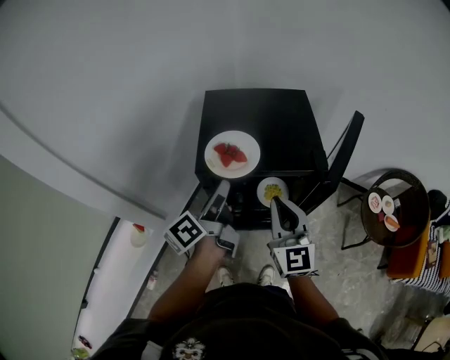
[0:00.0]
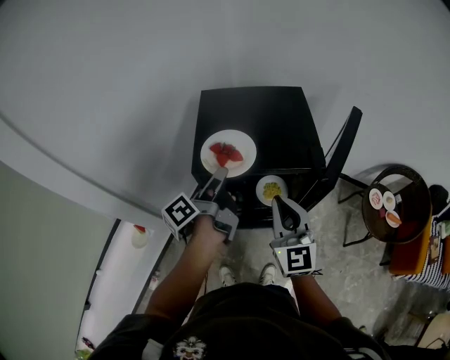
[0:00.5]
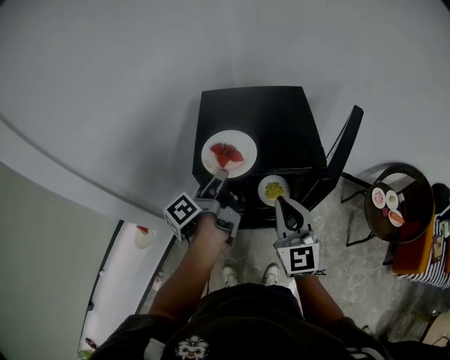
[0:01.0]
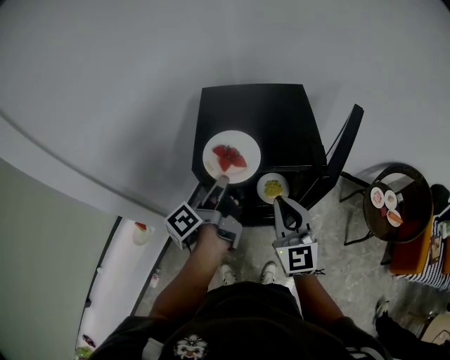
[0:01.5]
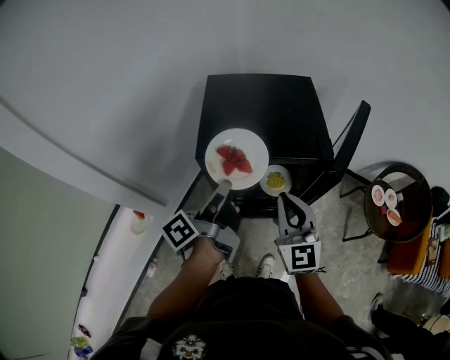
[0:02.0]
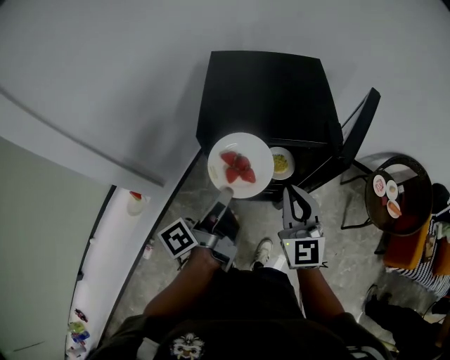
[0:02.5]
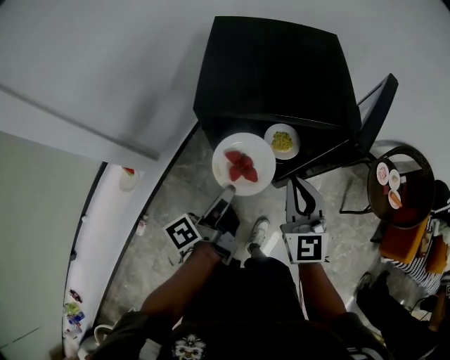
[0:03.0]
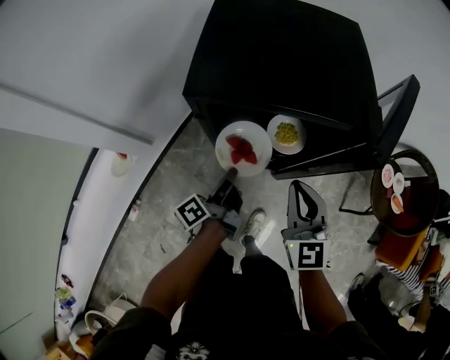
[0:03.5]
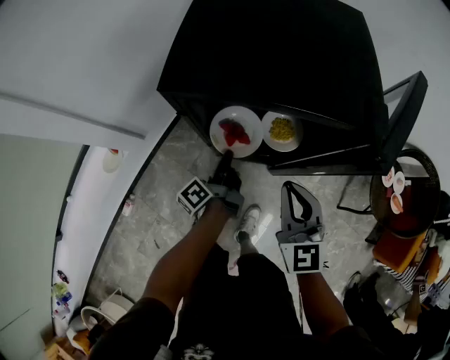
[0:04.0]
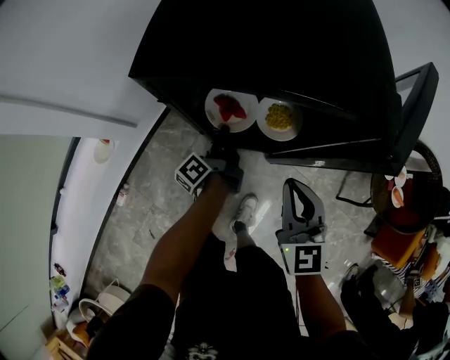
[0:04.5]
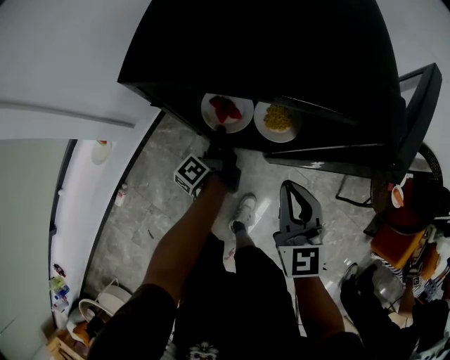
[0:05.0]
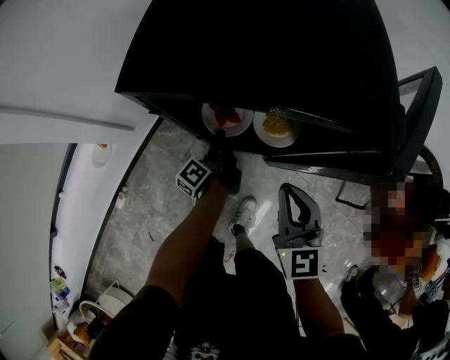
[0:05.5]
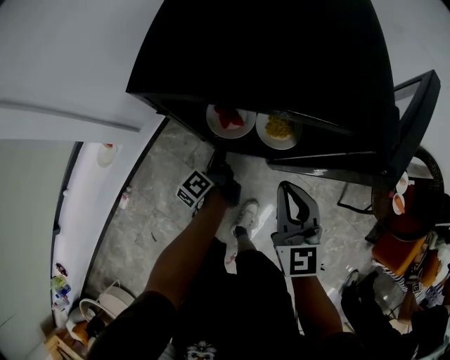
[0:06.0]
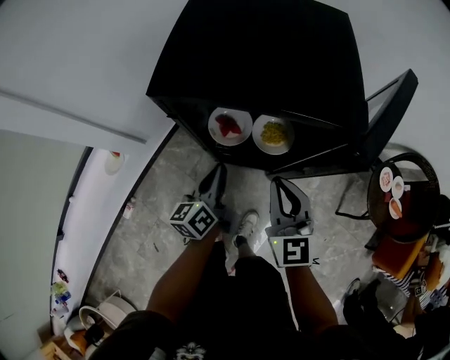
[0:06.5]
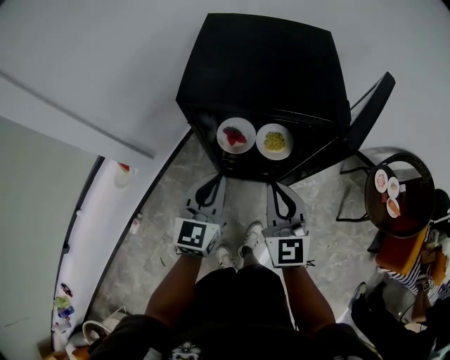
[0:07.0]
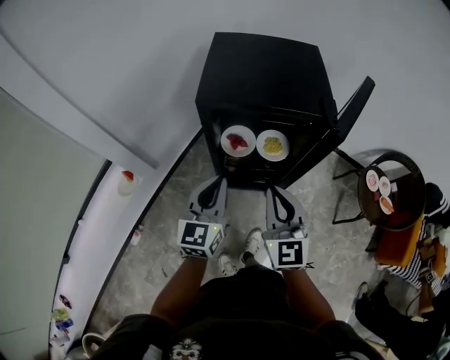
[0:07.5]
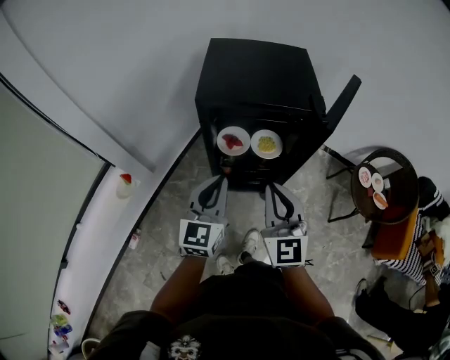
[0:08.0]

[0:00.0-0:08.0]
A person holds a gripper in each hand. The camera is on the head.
0.0 to 2.0 s: The left gripper closes up.
2.0 to 4.0 s: The left gripper shifts approximately 30 cm downward; the right gripper shifts approximately 15 cm downward.
4.0 to 6.0 s: The left gripper is displaced downward by about 5 cm, and opens up.
6.0 to 8.0 s: The right gripper shifts roughly 25 cm upward, backward and to the left, while the left gripper heads upward and backward, covering roughly 40 cm, rotates around the line of its fingers by approximately 80 degrees, clockwise from behind, and closes.

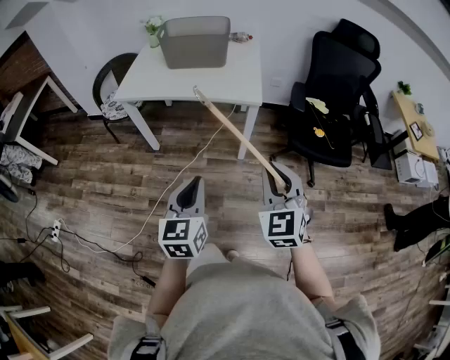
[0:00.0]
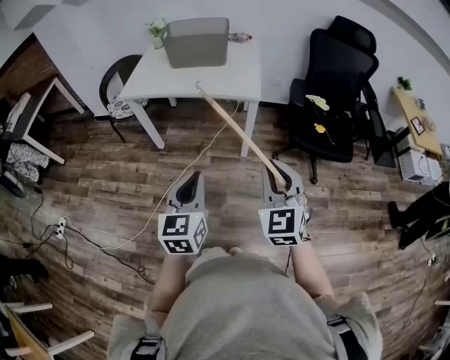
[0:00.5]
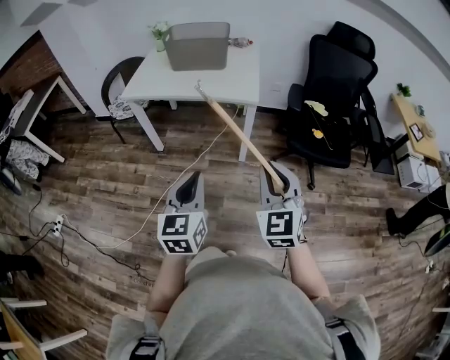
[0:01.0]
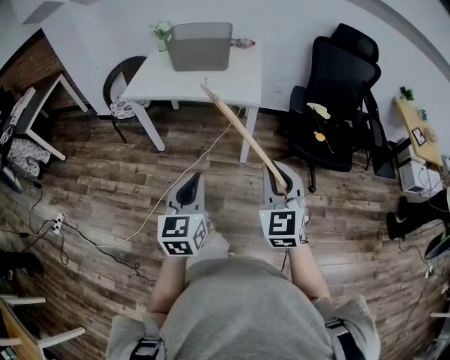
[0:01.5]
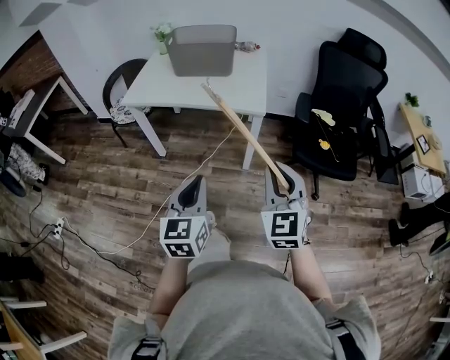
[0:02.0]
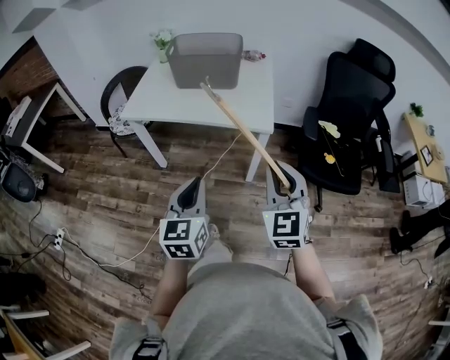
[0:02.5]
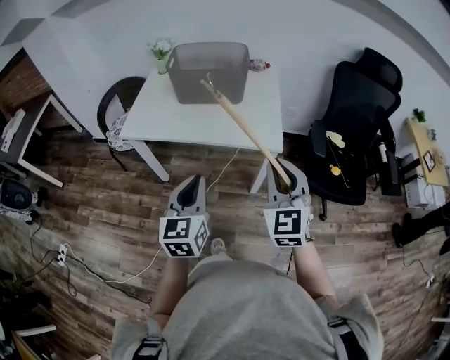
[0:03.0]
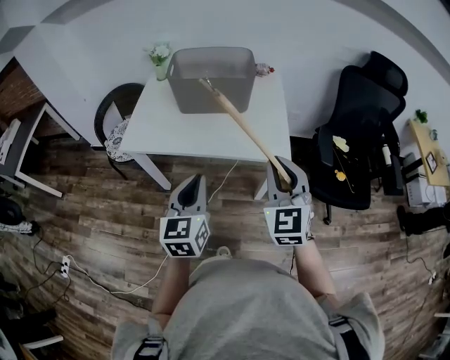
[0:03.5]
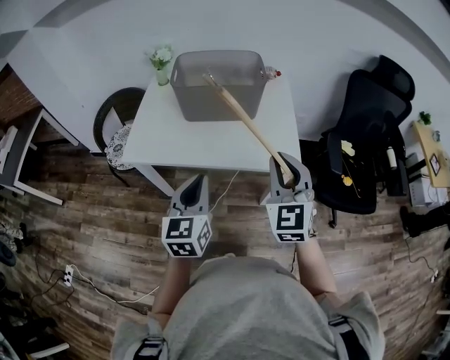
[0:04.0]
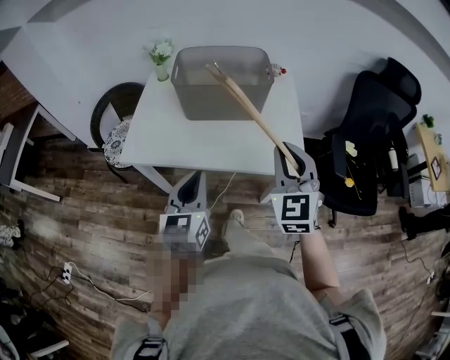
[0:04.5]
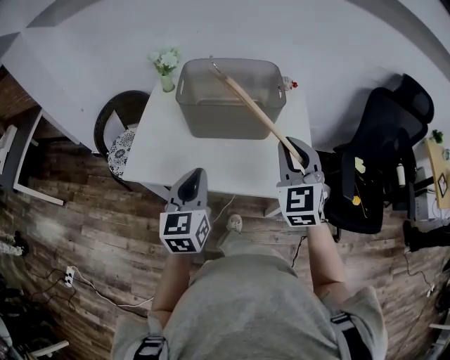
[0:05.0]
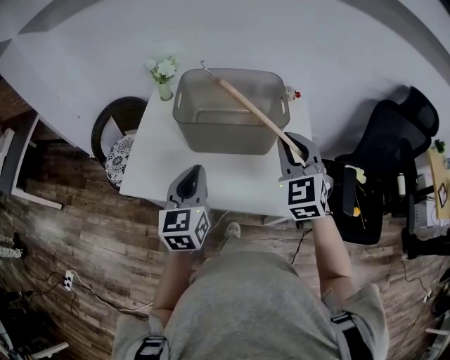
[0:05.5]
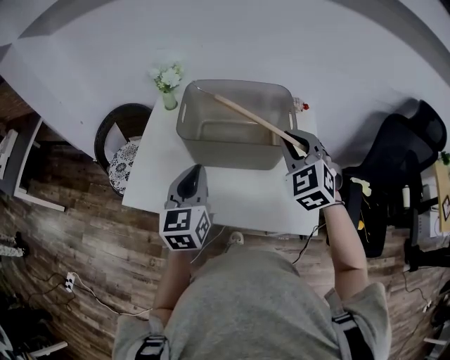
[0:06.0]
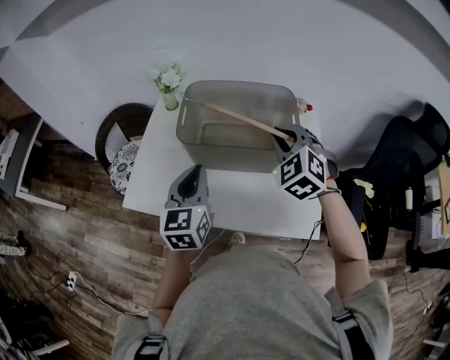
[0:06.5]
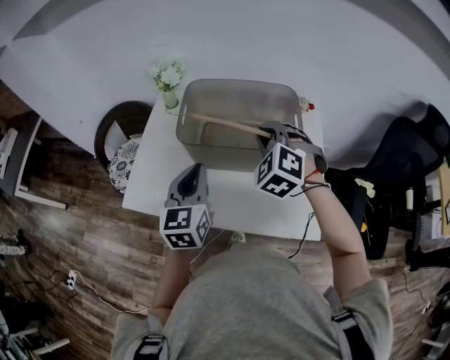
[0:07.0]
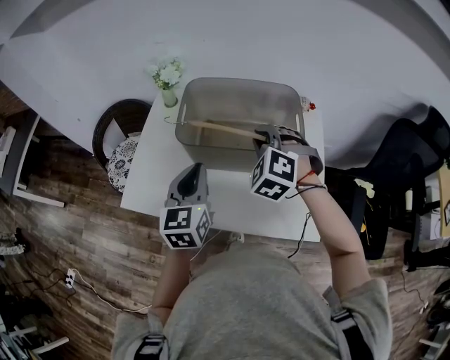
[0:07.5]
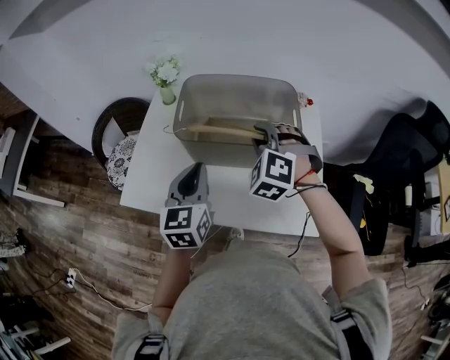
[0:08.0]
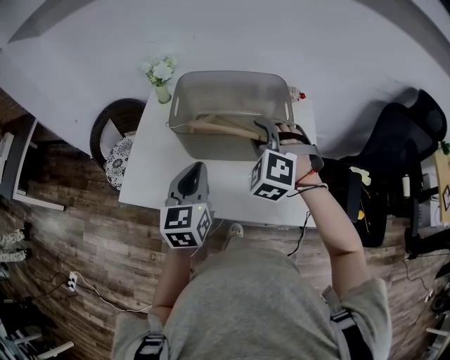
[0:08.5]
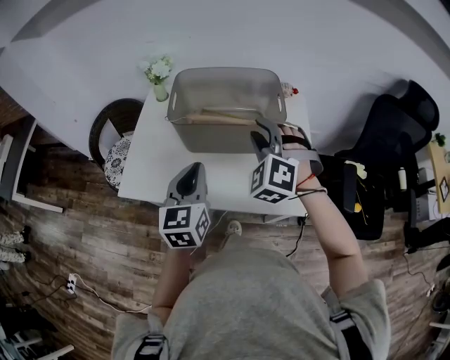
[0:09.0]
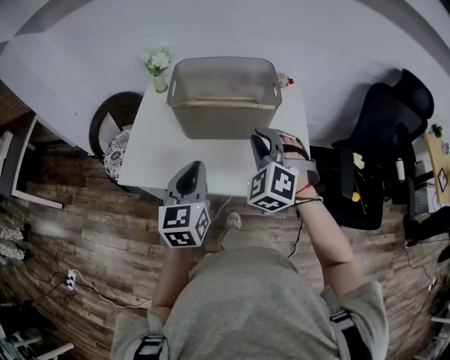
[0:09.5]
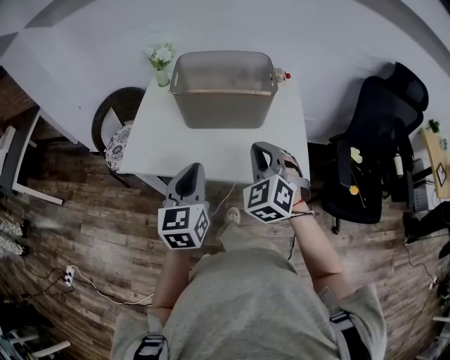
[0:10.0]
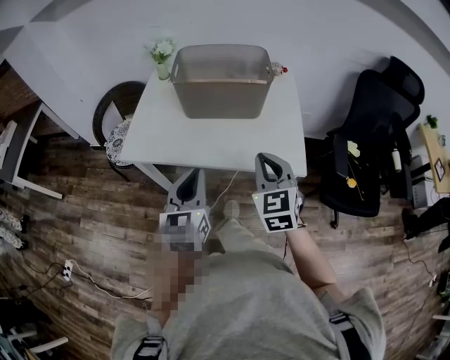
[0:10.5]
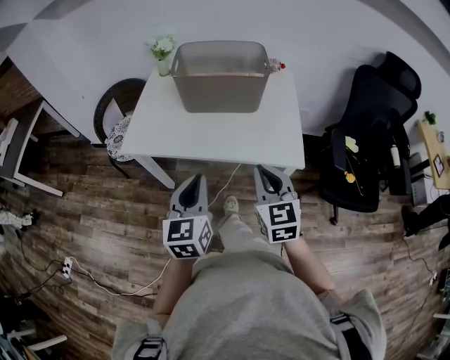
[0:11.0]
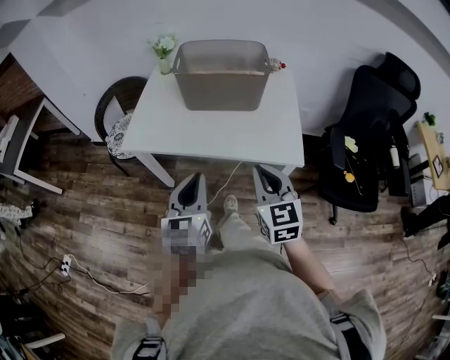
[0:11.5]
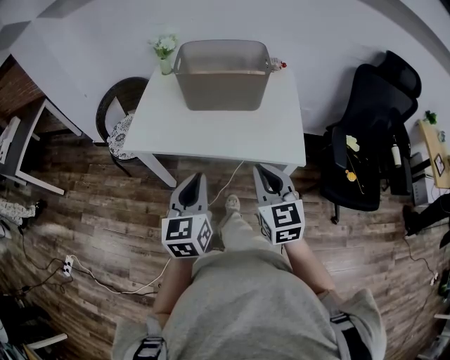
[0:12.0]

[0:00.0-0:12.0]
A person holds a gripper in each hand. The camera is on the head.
0.0 to 2.0 s: The right gripper moves roughly 5 cm backward and comes back.
2.0 to 4.0 s: Both grippers travel together forward and to the left, approximately 40 cm.
4.0 to 6.0 s: Both grippers move forward, some 30 cm. The right gripper changes its angle by about 30 degrees.
6.0 to 8.0 s: The right gripper heads to the left and downward, covering some 10 cm, and rotates approximately 30 degrees.
8.0 to 10.0 s: The two grippers go some 20 cm backward. The right gripper turns by some 30 degrees.
10.0 to 12.0 s: Both grippers move backward, roughly 15 cm. The right gripper changes its angle by approximately 40 degrees.

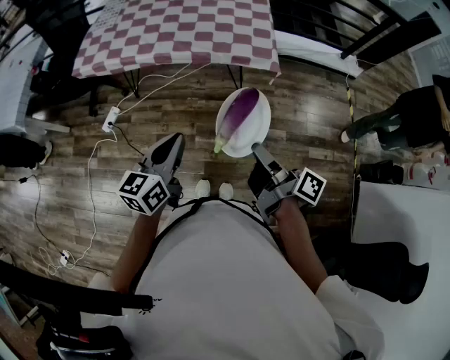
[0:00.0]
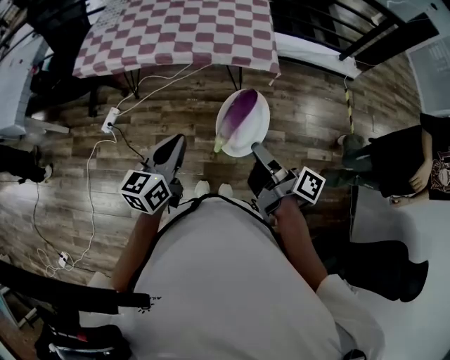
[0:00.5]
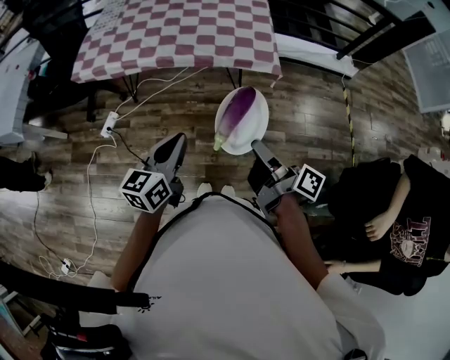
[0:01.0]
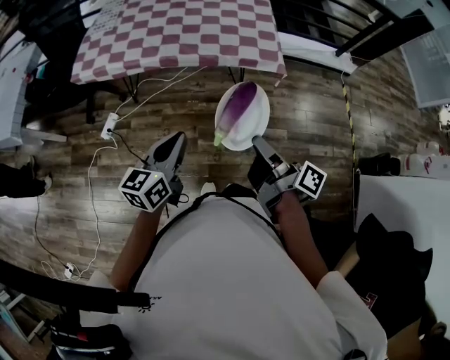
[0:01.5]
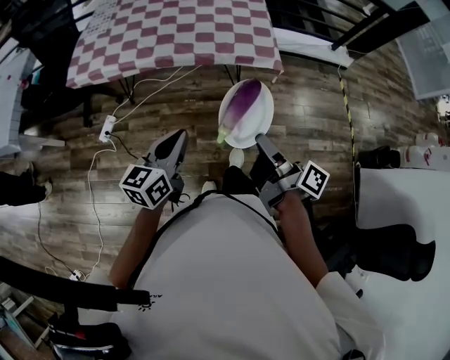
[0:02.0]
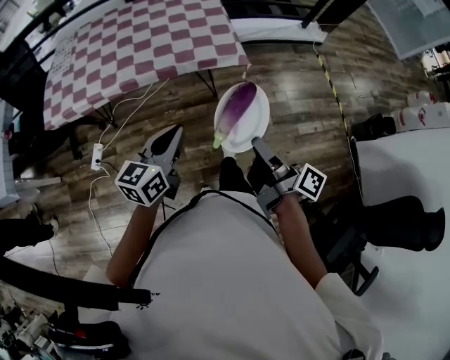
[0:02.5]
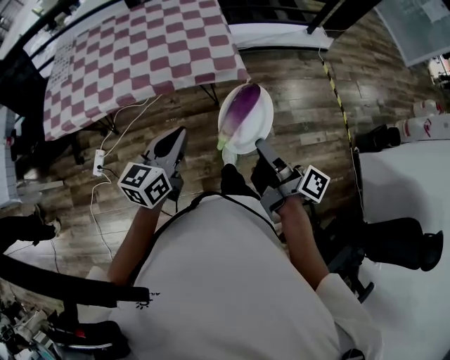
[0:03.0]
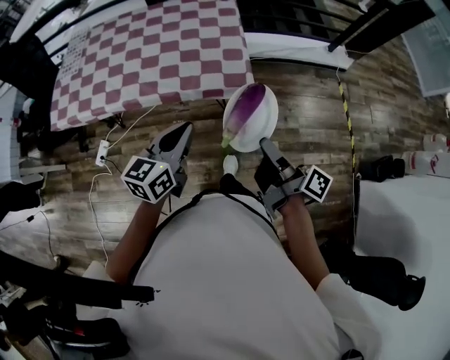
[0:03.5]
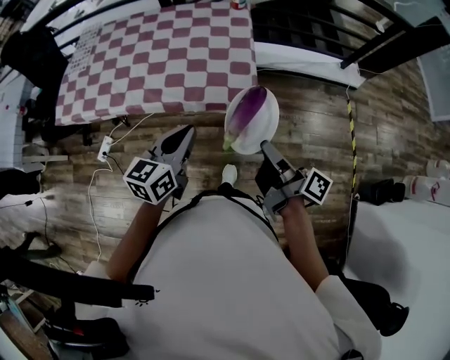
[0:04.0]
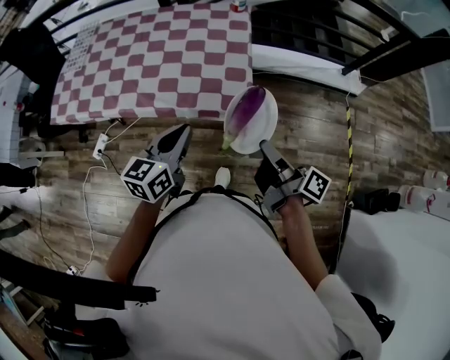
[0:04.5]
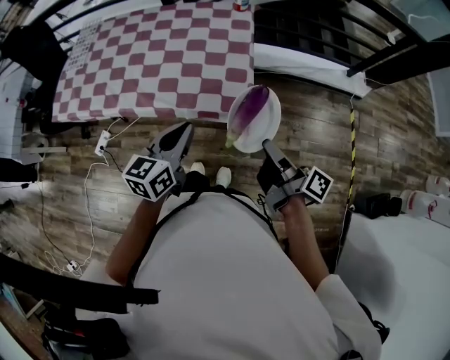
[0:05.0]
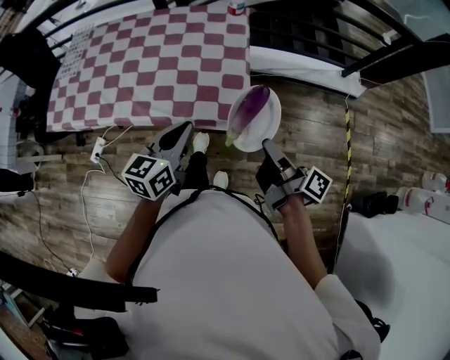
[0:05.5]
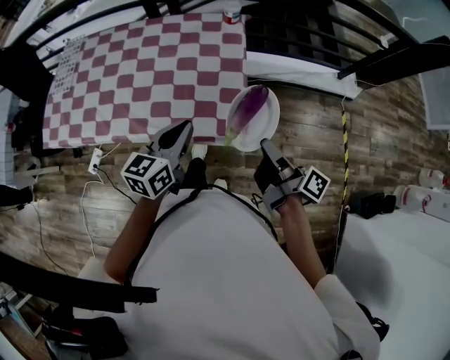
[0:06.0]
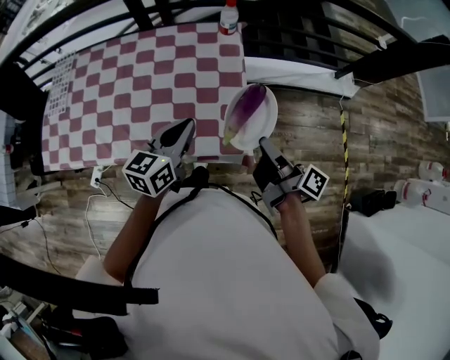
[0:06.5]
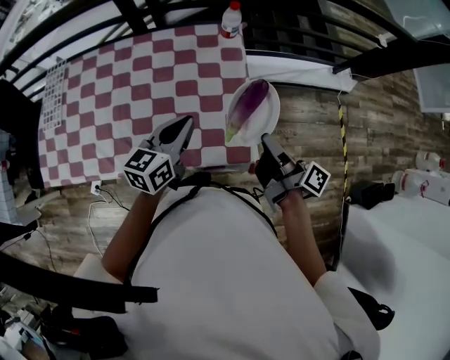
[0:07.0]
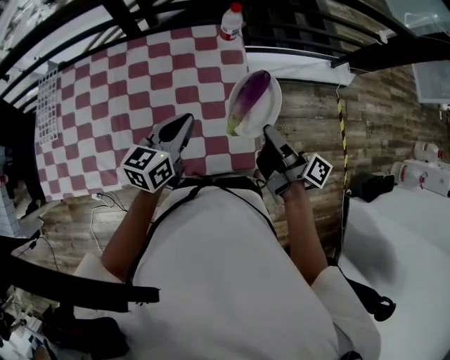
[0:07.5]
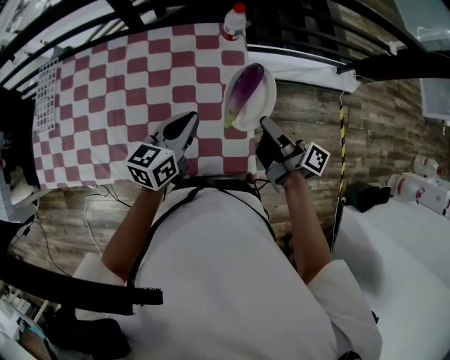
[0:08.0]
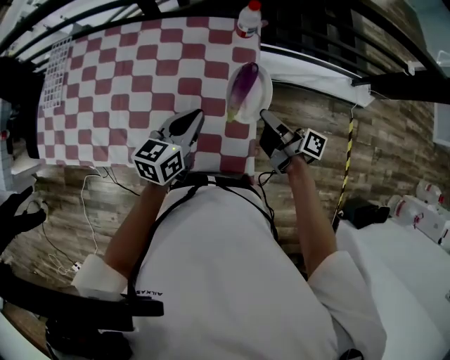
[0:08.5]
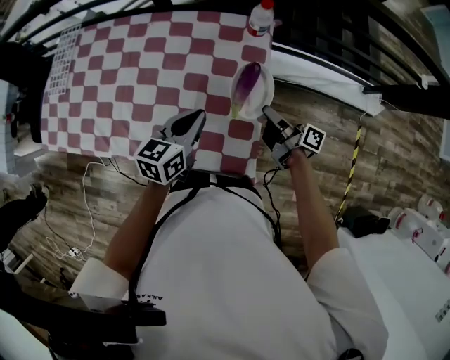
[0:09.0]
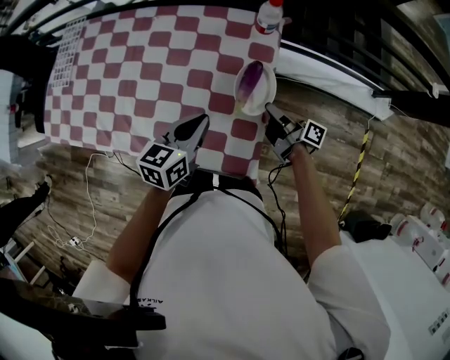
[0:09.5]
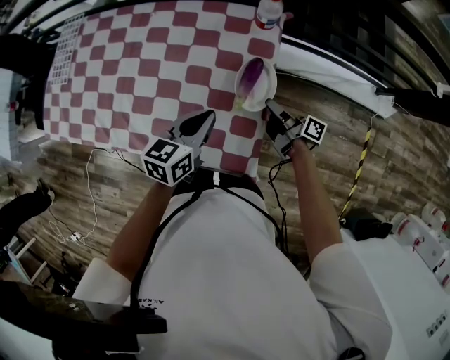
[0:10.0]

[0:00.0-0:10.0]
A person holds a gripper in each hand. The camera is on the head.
0.0 to 2.0 s: The left gripper moves about 5 cm.
2.0 to 4.0 s: The left gripper ends up approximately 35 cm from where it was.
4.0 to 6.0 s: The left gripper changes place by about 20 cm.
6.0 to 8.0 s: The left gripper moves approximately 25 cm.
8.0 to 10.0 s: The left gripper goes some 5 cm downward.
